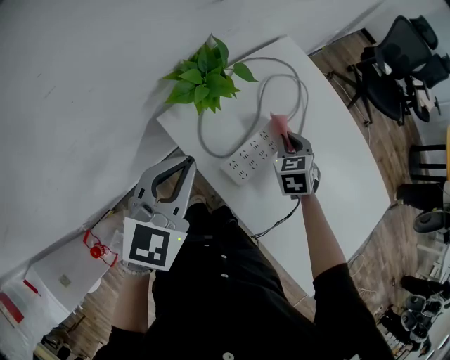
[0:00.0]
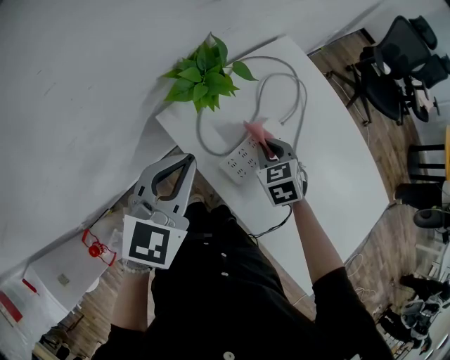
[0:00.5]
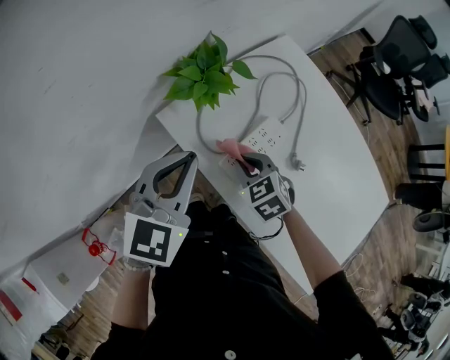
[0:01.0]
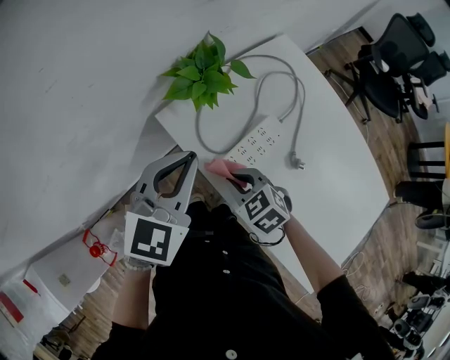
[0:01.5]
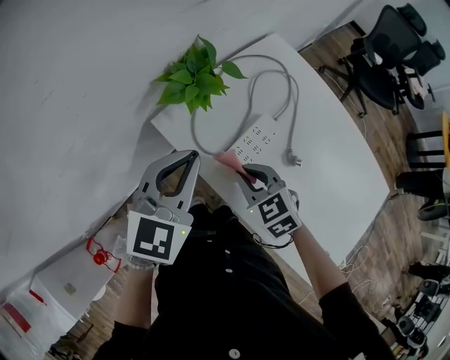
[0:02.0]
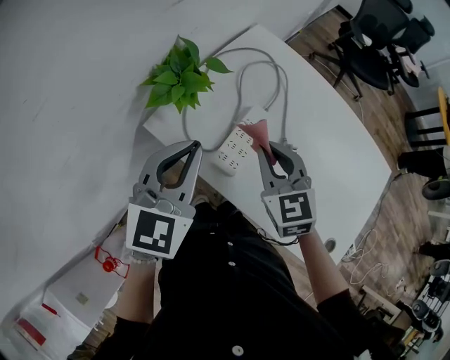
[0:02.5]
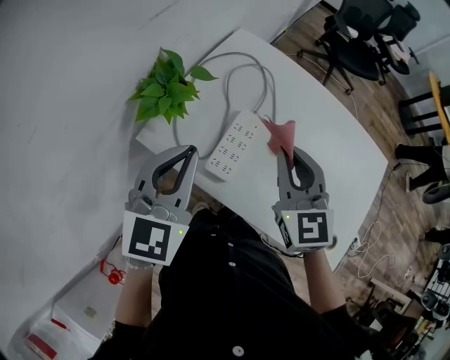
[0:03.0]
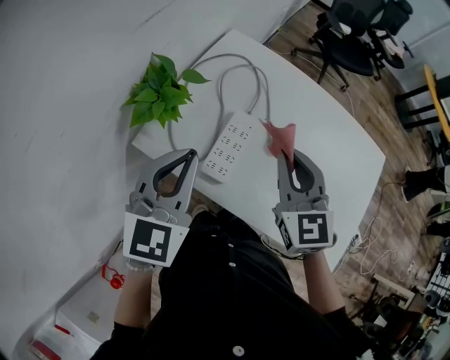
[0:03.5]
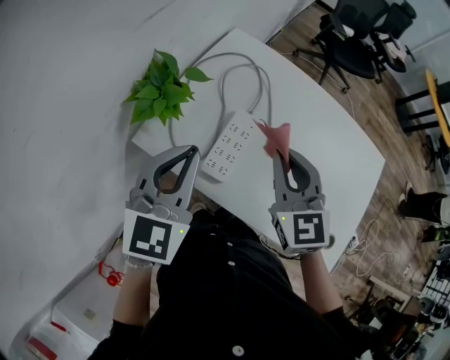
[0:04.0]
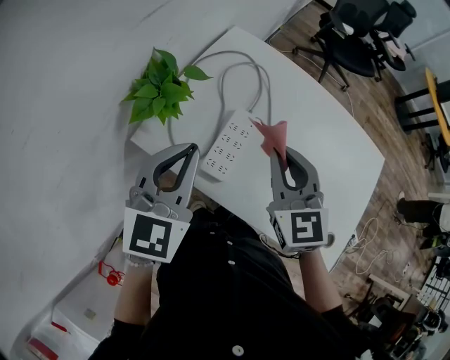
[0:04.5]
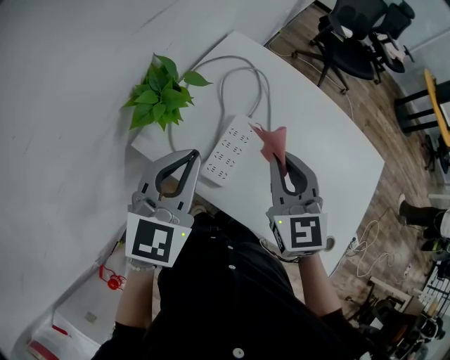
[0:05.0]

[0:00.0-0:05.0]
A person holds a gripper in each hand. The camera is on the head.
0:00.0 to 0:02.5: The right gripper heads upward, covering some 10 cm, and rotates some 20 degrees. Meanwhile the left gripper changes place by about 5 cm.
0:02.5 to 0:05.0: The right gripper heads upward and to the right, covering about 10 cm.

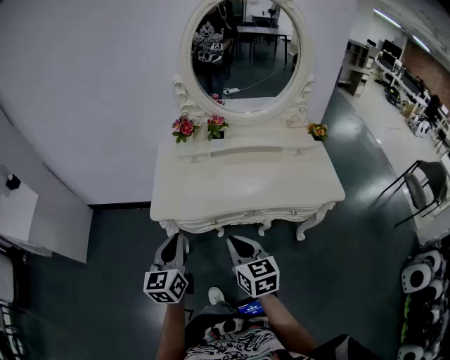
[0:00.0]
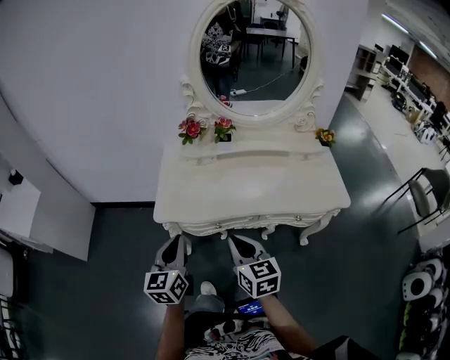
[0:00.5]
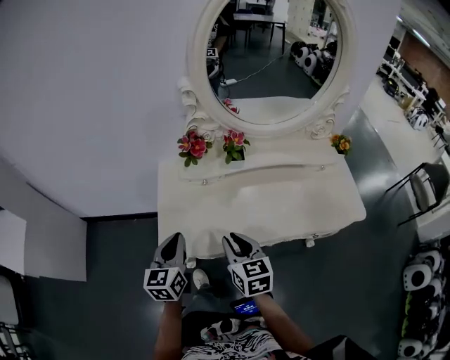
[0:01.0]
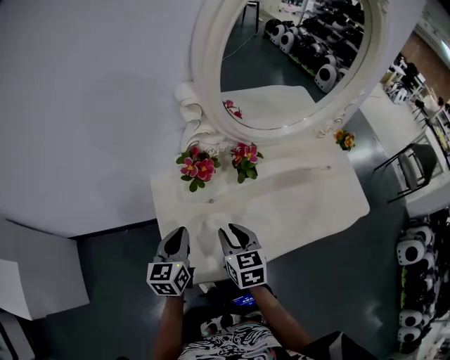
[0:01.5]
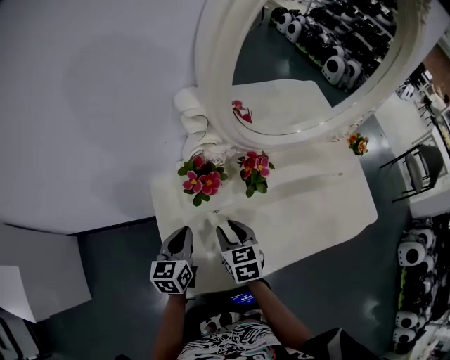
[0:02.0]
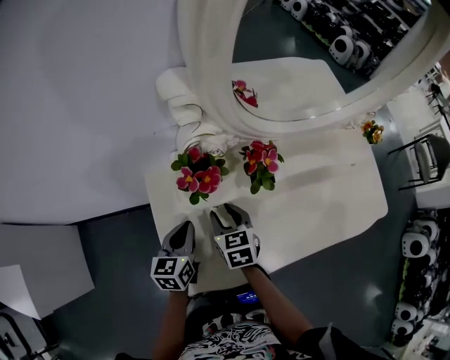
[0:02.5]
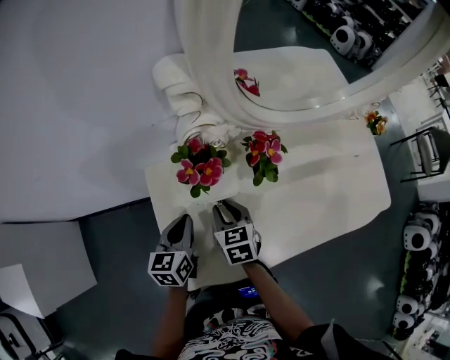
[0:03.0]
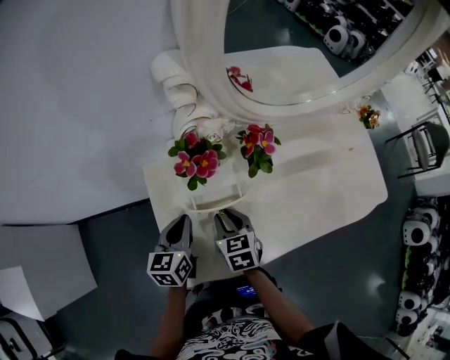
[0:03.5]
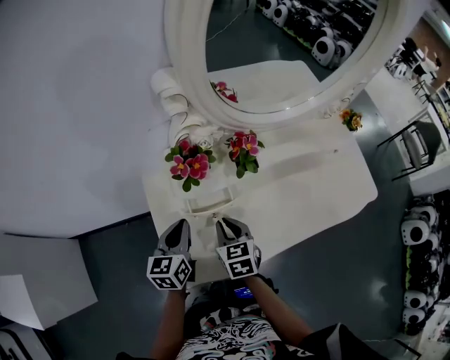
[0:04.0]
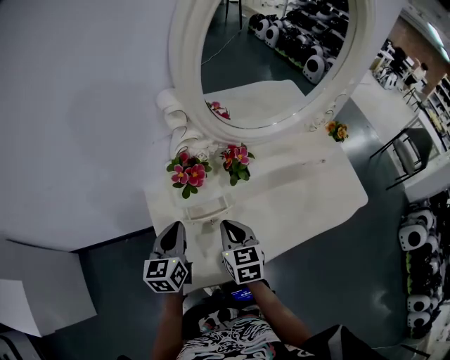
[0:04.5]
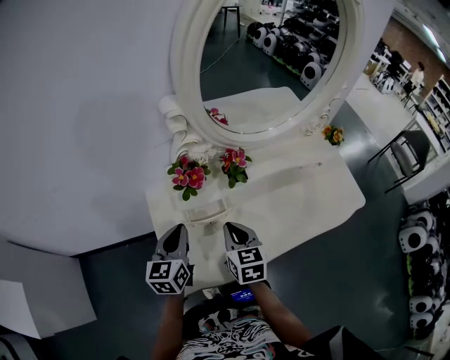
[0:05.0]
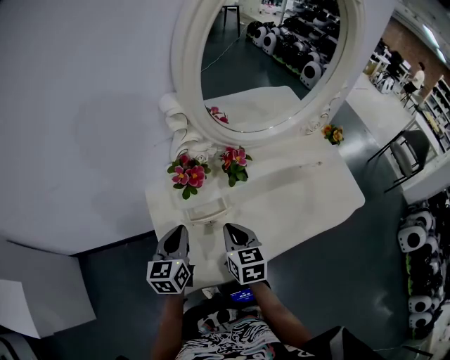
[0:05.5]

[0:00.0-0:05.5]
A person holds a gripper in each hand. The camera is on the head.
0:00.0 to 0:02.0: The grippers both shift forward by some 40 cm. The left gripper rotates some 20 degrees. Meanwhile the right gripper swivels approximately 20 degrees, and opens.
0:02.0 to 0:03.5: The right gripper is displaced downward by about 5 cm.
0:03.5 to 0:05.5: The grippers both shift upward by some 10 cm. The right gripper closes its fingers.

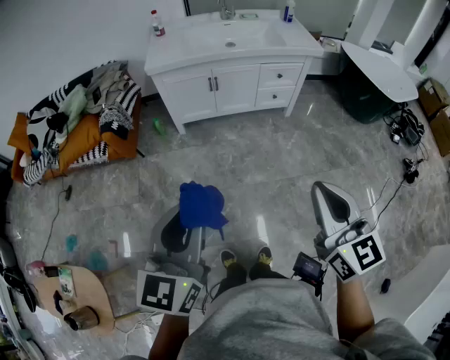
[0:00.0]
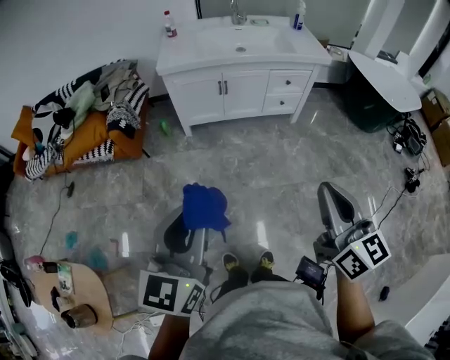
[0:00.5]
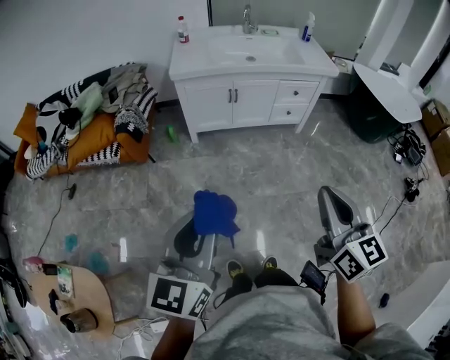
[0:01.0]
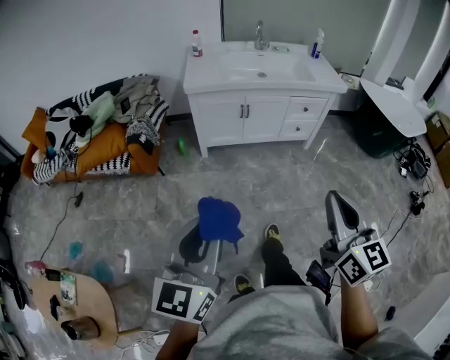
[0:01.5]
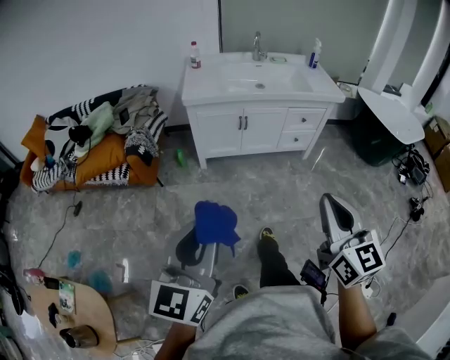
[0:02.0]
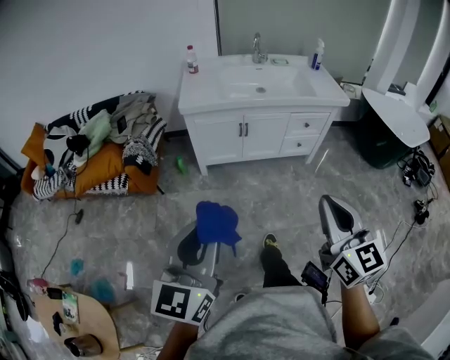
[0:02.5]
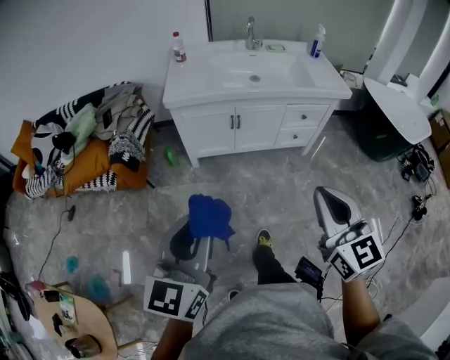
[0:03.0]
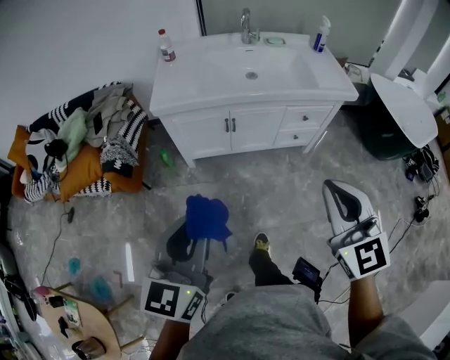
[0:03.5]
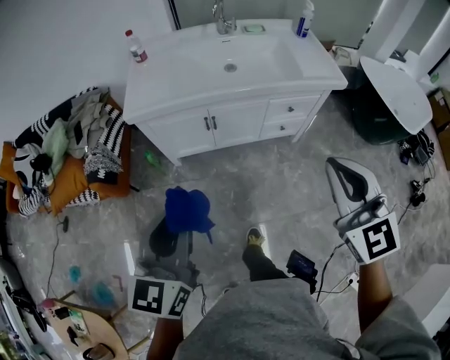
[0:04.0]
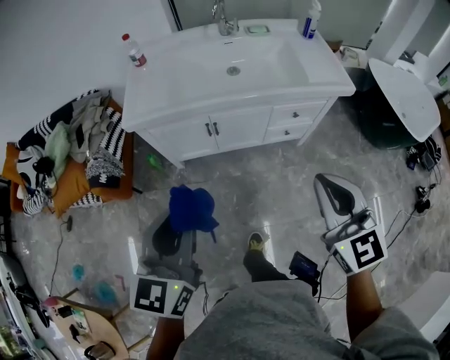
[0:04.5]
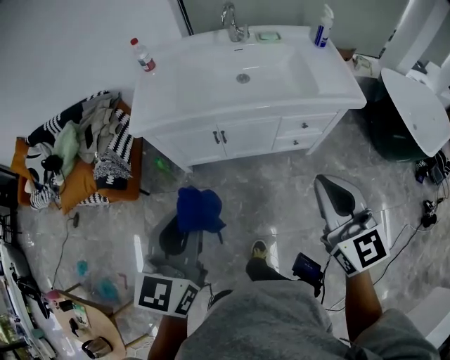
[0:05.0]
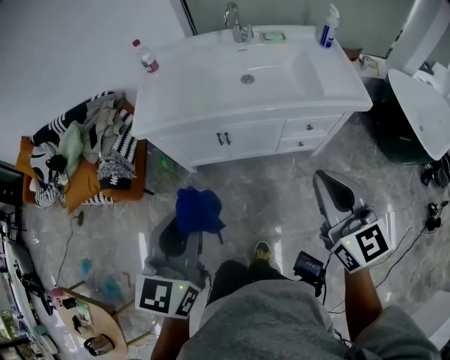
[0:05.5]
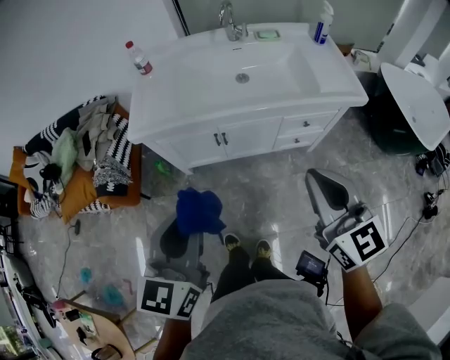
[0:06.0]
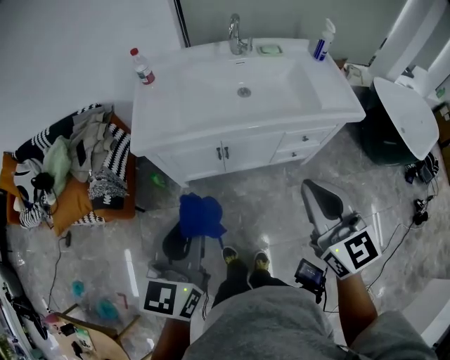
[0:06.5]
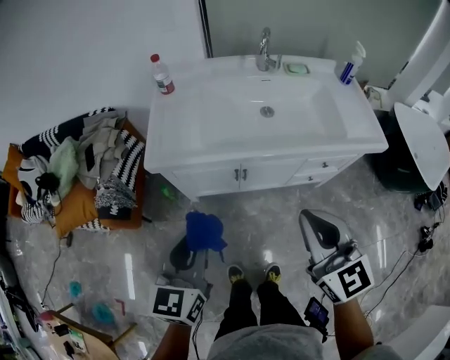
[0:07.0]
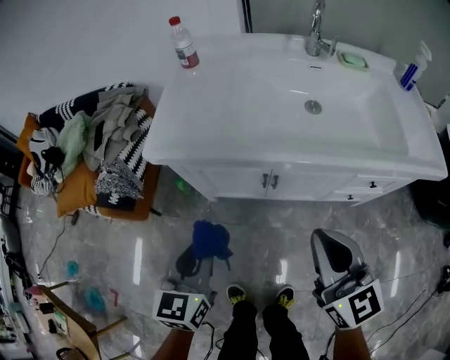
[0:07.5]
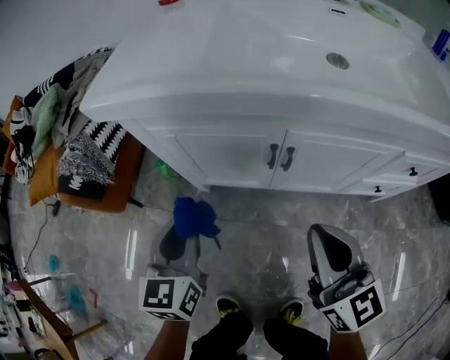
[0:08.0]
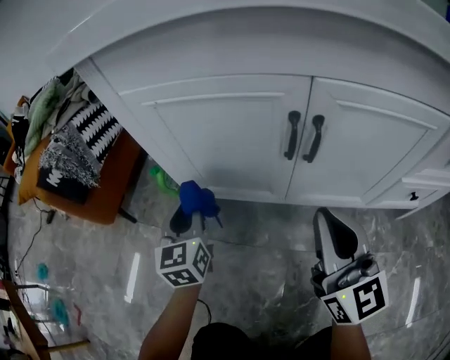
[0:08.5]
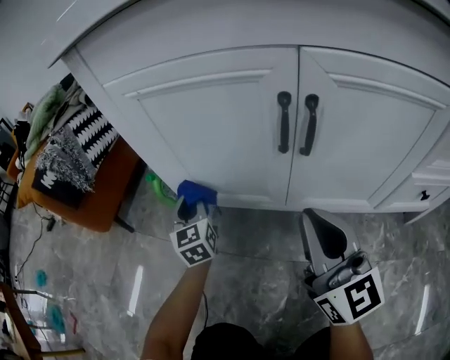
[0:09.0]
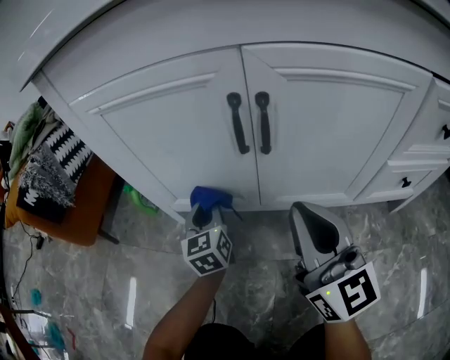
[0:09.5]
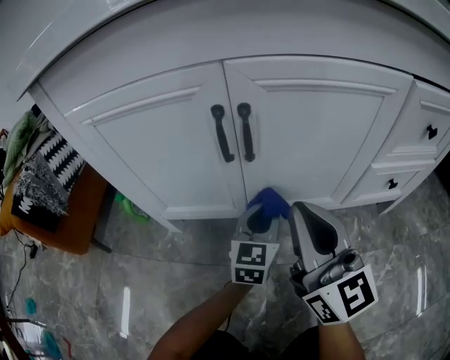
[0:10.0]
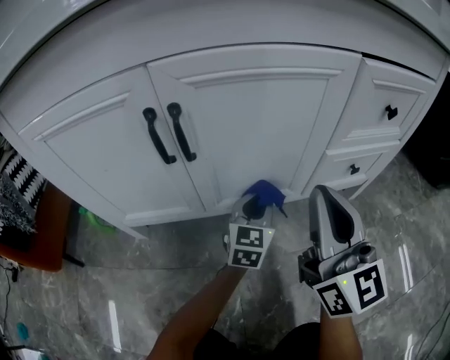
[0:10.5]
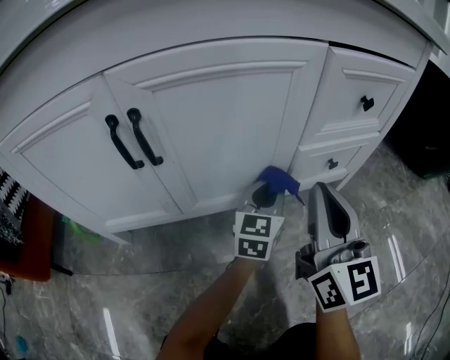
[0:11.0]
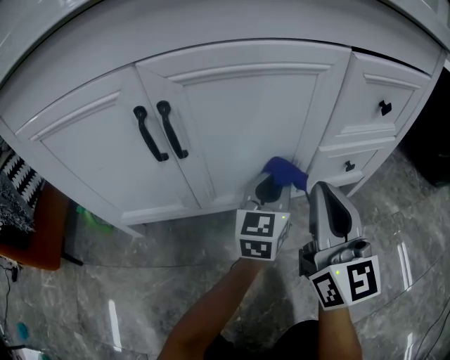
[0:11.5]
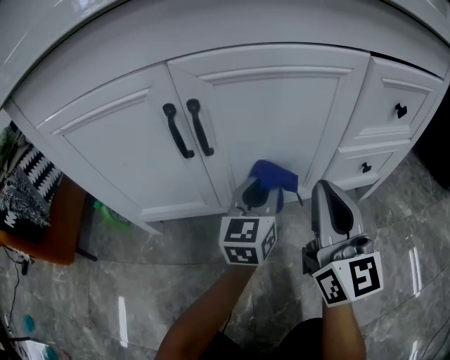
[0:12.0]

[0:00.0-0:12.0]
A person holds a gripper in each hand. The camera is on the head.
0:00.0 to 0:02.0: The two grippers go some 10 cm to the left.
0:02.0 to 0:04.0: The left gripper is displaced forward by some 35 cm. Meanwhile the right gripper heads forward and to the right, covering roughly 35 cm, and rotates roughly 20 degrees.
0:04.0 to 0:06.0: Both grippers travel together forward, about 10 cm. The right gripper changes its angle by approximately 20 degrees.
0:06.0 to 0:08.0: The grippers both shift downward and forward by about 50 cm. The left gripper swivels roughly 20 degrees.
0:08.0 to 0:10.0: The right gripper moves downward, approximately 15 cm. The left gripper travels downward by some 30 cm, and changes its angle by about 30 degrees.
0:10.0 to 0:12.0: The left gripper moves to the right and upward, about 10 cm. Meanwhile the right gripper travels to the right by roughly 10 cm.

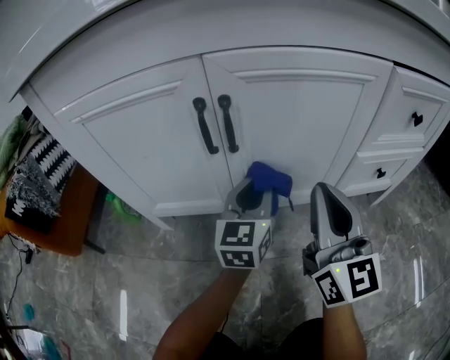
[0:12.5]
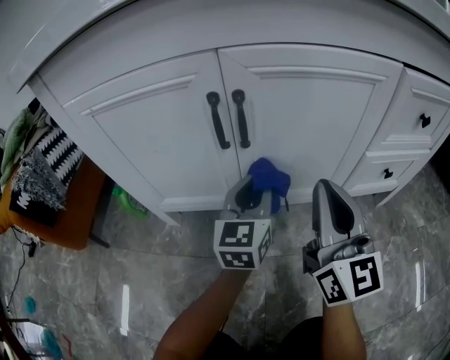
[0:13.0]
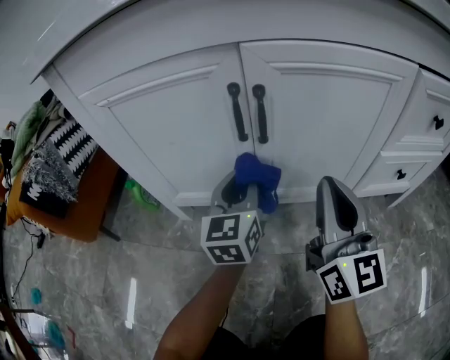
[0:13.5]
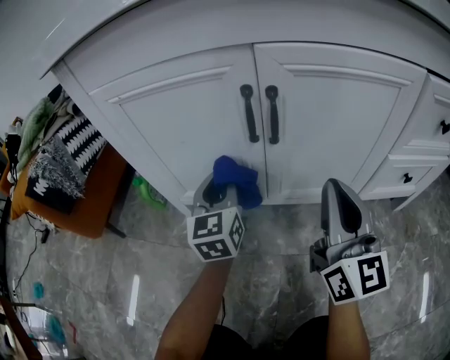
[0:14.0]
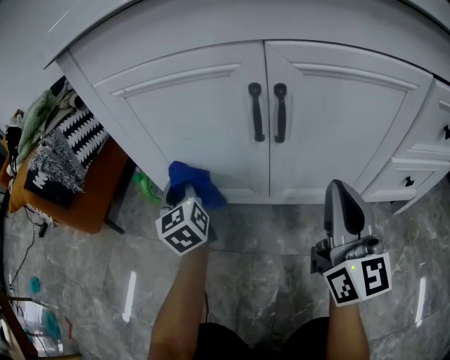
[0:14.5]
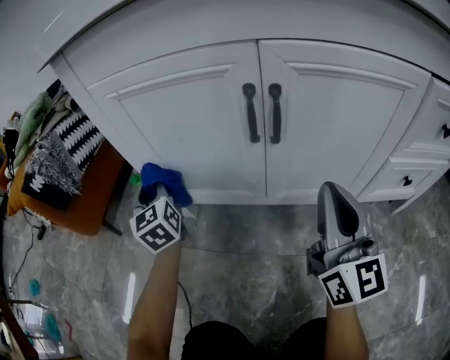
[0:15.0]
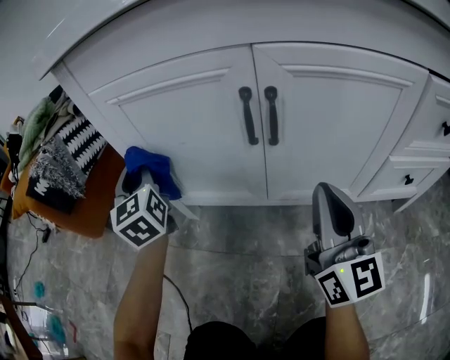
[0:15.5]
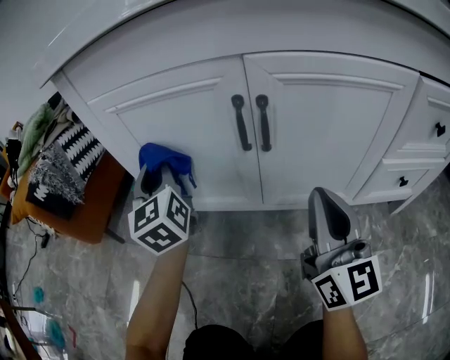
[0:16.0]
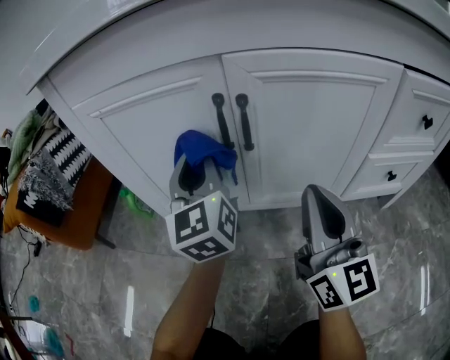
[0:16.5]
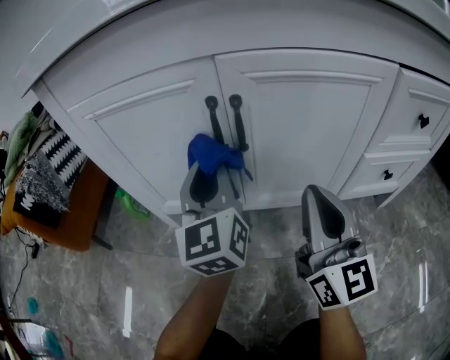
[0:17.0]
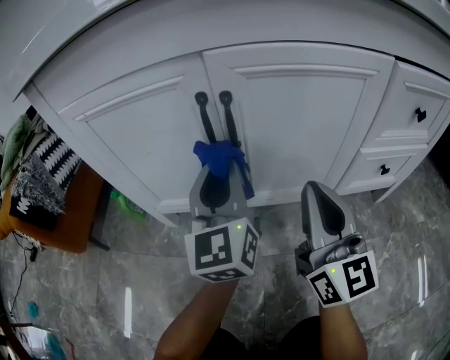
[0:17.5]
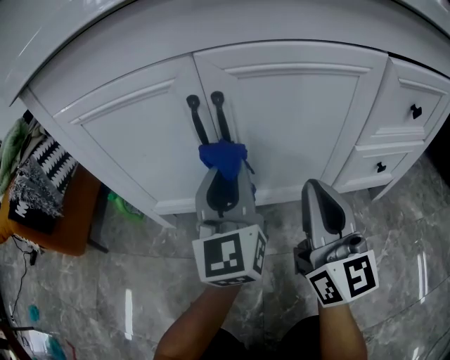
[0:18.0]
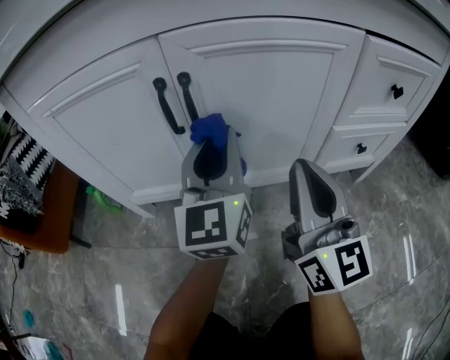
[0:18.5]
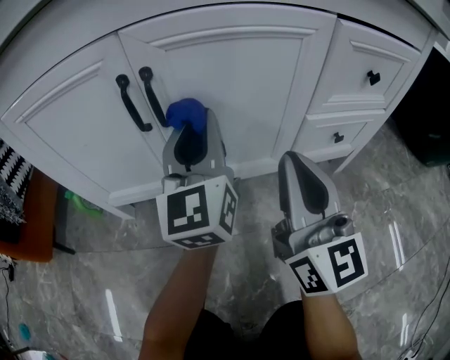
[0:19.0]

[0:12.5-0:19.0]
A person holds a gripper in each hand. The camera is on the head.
0:12.5 to 0:14.5: The left gripper heads to the left, covering approximately 30 cm, and rotates some 40 degrees.
0:14.5 to 0:17.0: The left gripper shifts about 20 cm to the right and upward, and swivels approximately 20 degrees.
0:17.0 to 0:19.0: The left gripper heads to the right, covering roughly 10 cm. Meanwhile the right gripper travels to the right by some 5 cm.
